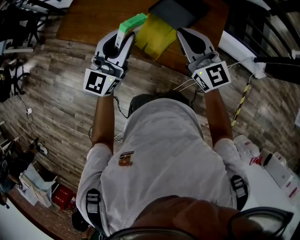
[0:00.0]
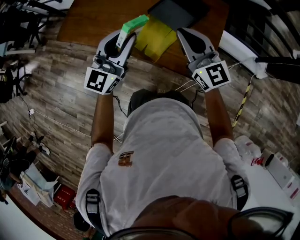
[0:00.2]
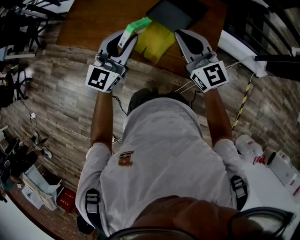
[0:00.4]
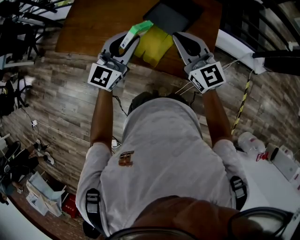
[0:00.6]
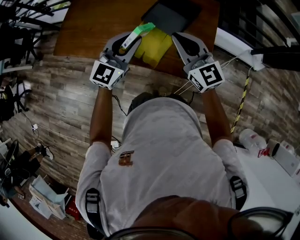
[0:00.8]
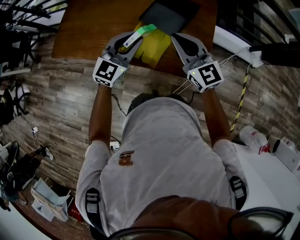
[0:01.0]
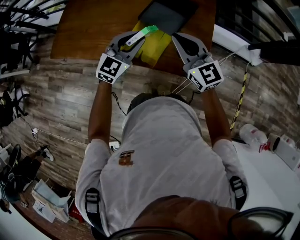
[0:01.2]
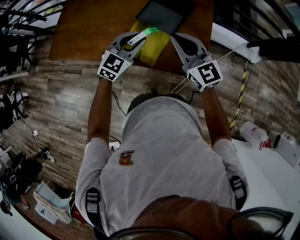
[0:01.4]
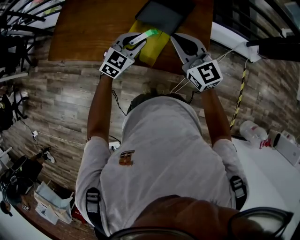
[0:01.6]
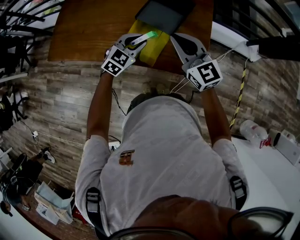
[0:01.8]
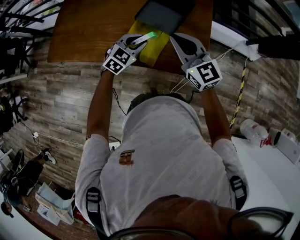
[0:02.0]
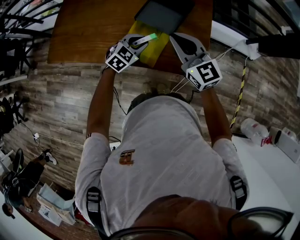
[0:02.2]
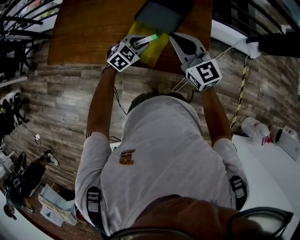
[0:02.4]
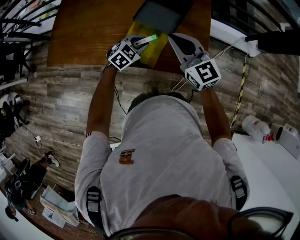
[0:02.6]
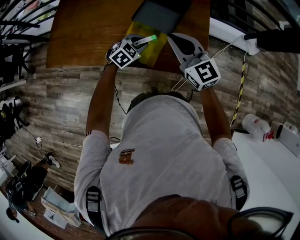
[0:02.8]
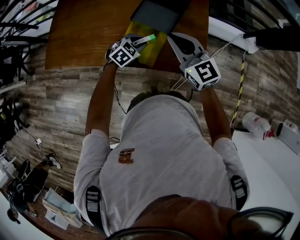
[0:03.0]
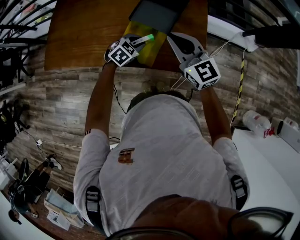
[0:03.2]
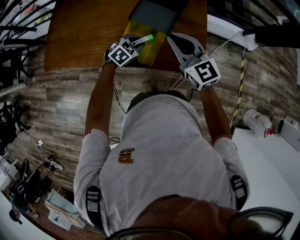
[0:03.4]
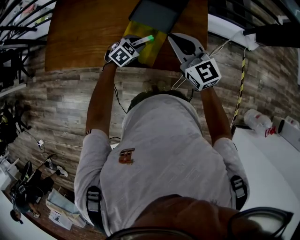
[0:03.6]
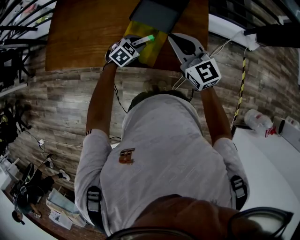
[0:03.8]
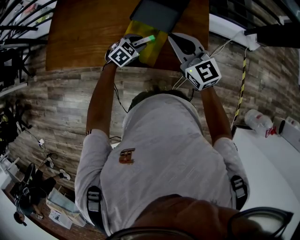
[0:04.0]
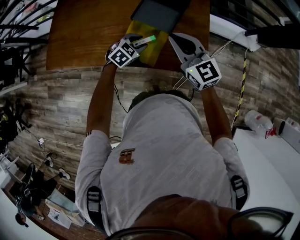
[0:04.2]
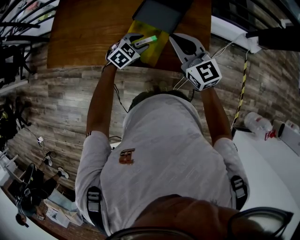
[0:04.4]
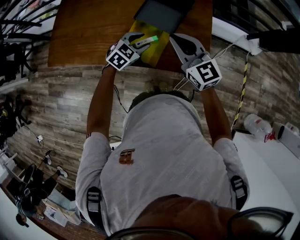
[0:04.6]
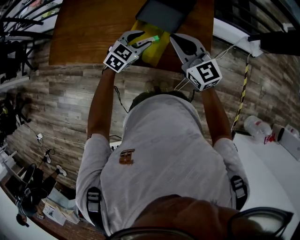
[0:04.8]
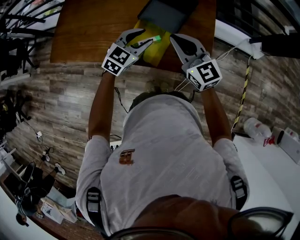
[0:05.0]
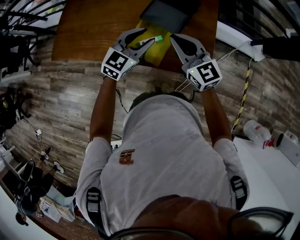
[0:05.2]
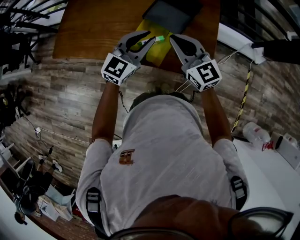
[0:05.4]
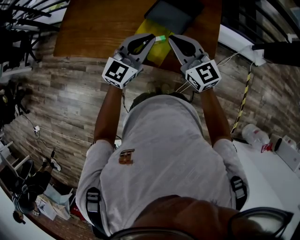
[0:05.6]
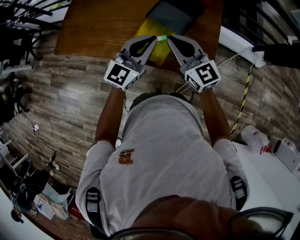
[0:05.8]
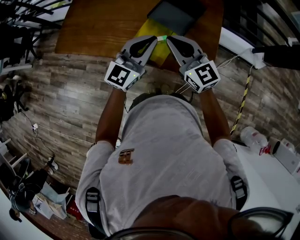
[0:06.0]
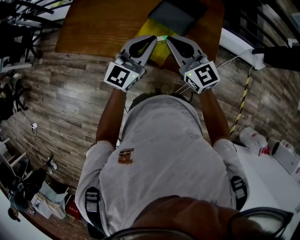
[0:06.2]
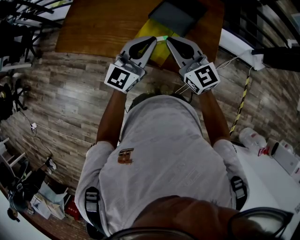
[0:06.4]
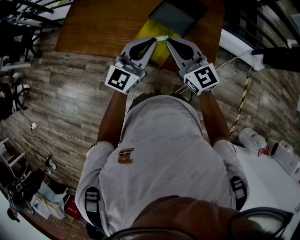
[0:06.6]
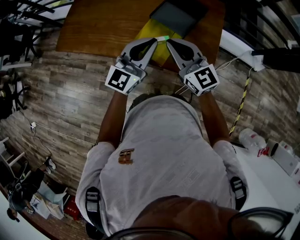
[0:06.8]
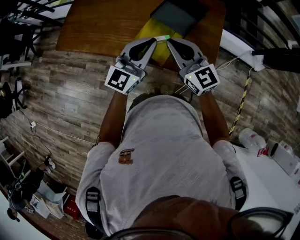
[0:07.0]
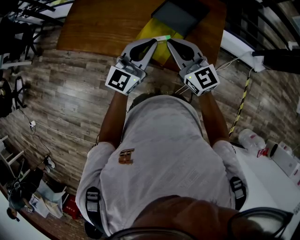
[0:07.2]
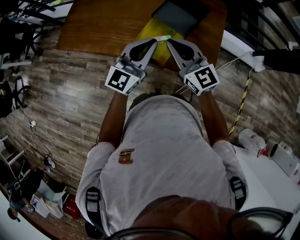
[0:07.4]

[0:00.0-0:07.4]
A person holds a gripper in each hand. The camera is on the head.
0:00.0 to 0:01.4: The left gripper heads downward and forward, covering about 15 cm, and tilts its fingers some 30 degrees downward.
0:01.4 to 0:03.0: The left gripper shifts some 15 cm downward, and changes its angle by about 30 degrees.
0:03.0 to 0:04.4: The grippers make only small movements.
0:04.4 to 0:06.0: The right gripper changes place by some 5 cm. Meanwhile the left gripper travels upward by approximately 20 cm, angles its fingers upward, by roughly 50 degrees, and closes its fingers.
0:06.0 to 0:07.4: The grippers move only a little.

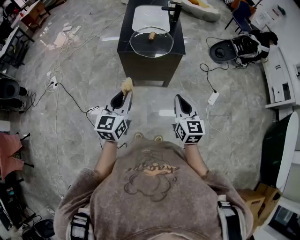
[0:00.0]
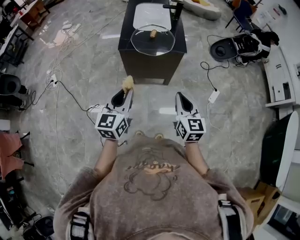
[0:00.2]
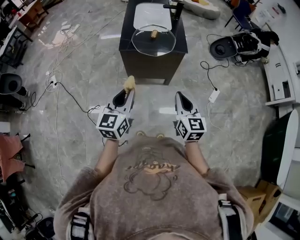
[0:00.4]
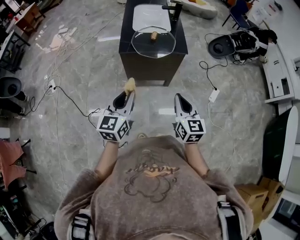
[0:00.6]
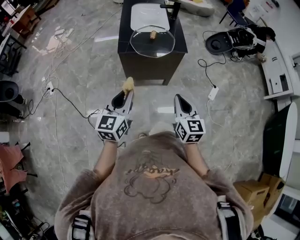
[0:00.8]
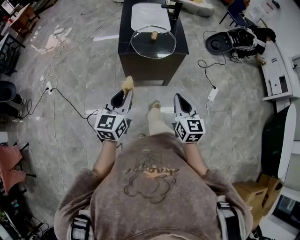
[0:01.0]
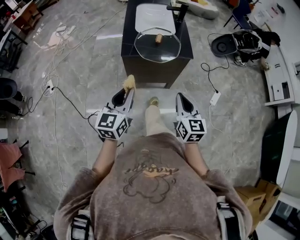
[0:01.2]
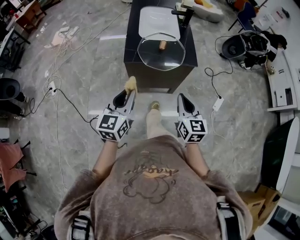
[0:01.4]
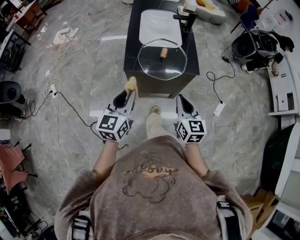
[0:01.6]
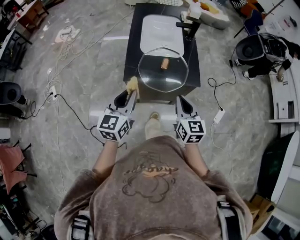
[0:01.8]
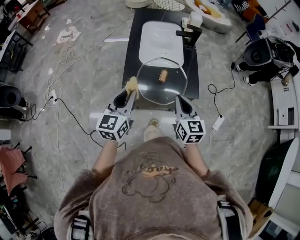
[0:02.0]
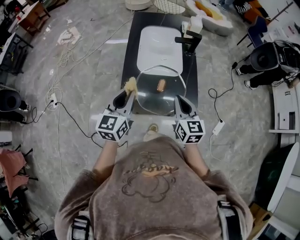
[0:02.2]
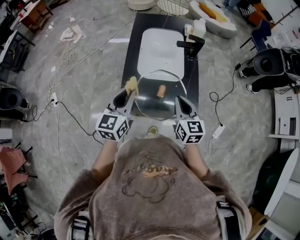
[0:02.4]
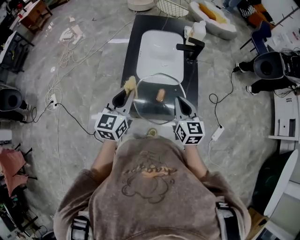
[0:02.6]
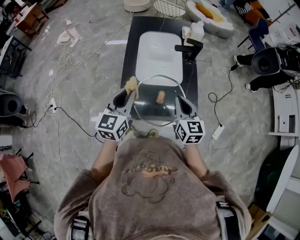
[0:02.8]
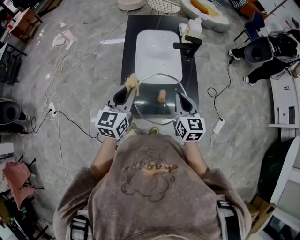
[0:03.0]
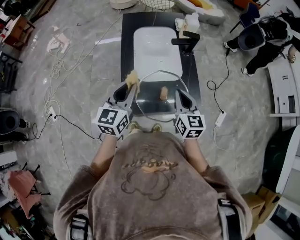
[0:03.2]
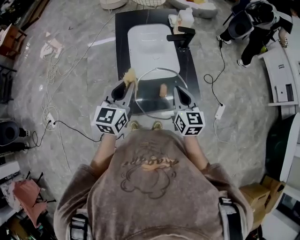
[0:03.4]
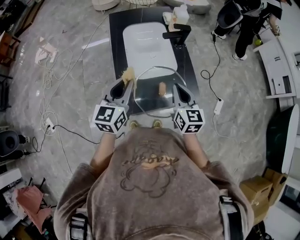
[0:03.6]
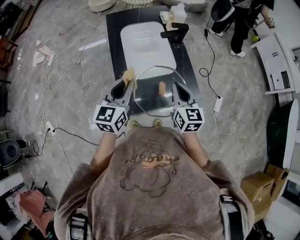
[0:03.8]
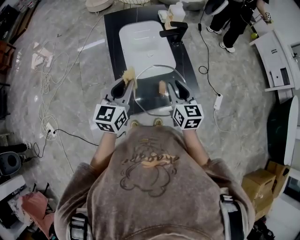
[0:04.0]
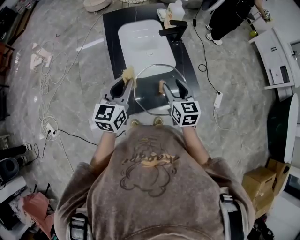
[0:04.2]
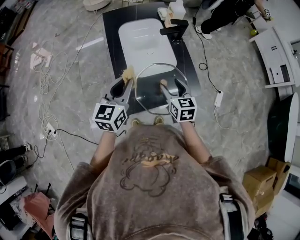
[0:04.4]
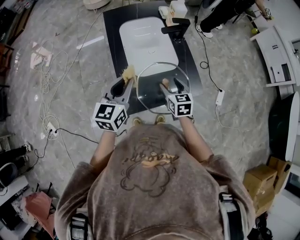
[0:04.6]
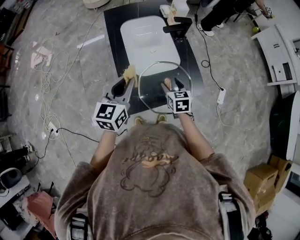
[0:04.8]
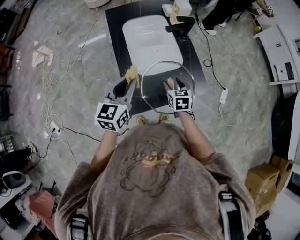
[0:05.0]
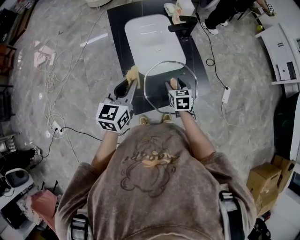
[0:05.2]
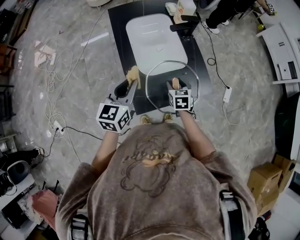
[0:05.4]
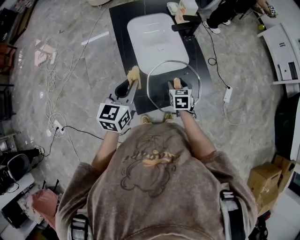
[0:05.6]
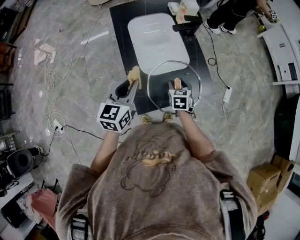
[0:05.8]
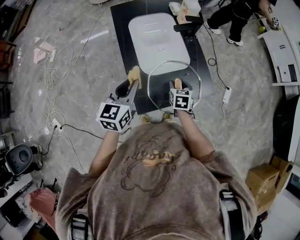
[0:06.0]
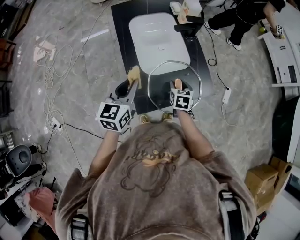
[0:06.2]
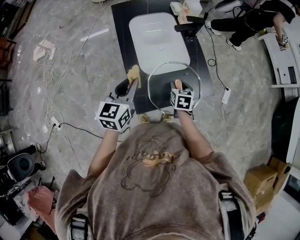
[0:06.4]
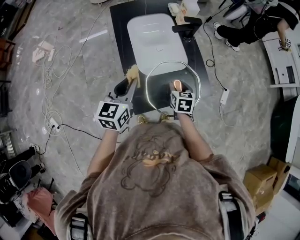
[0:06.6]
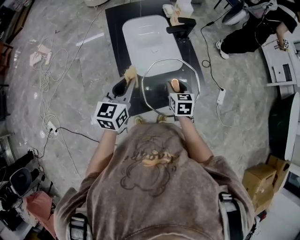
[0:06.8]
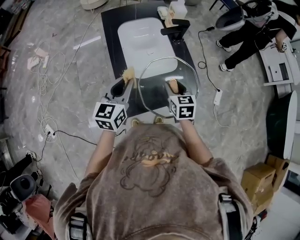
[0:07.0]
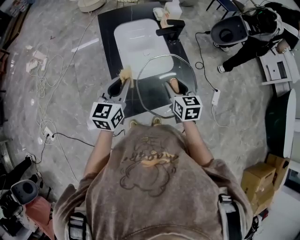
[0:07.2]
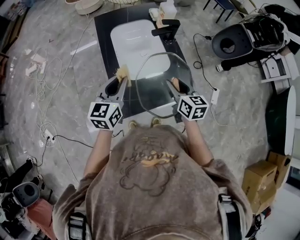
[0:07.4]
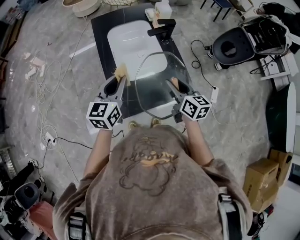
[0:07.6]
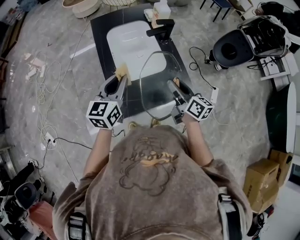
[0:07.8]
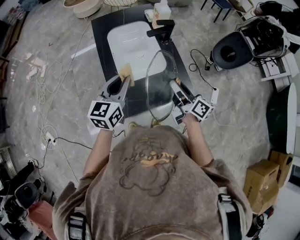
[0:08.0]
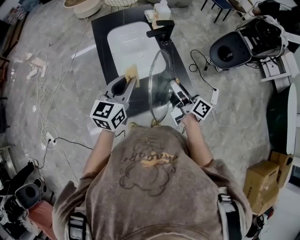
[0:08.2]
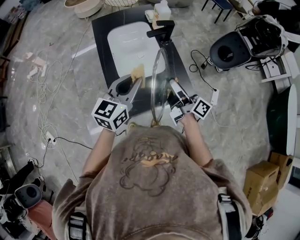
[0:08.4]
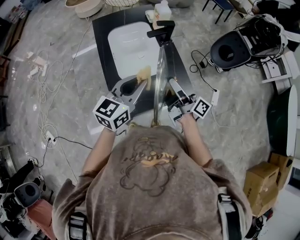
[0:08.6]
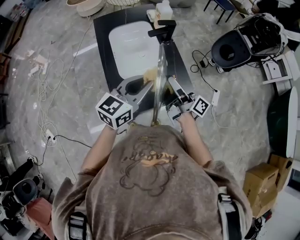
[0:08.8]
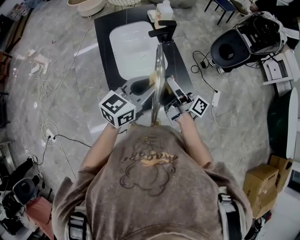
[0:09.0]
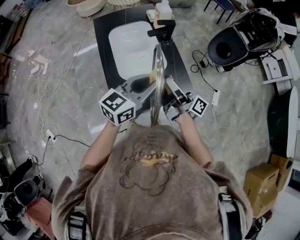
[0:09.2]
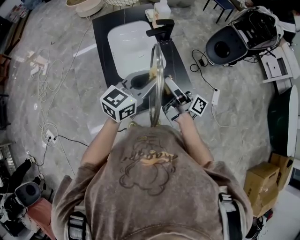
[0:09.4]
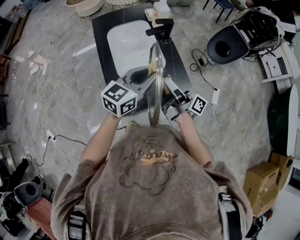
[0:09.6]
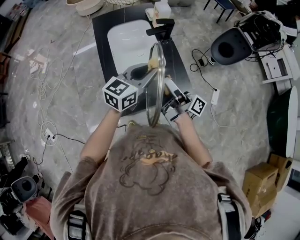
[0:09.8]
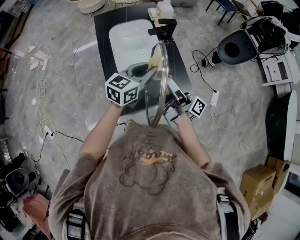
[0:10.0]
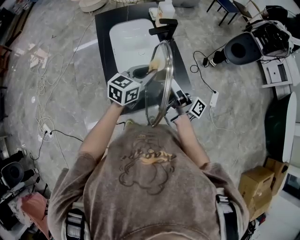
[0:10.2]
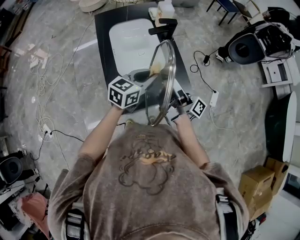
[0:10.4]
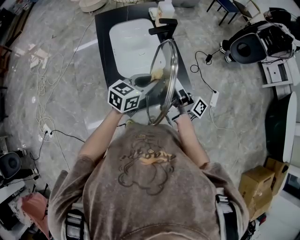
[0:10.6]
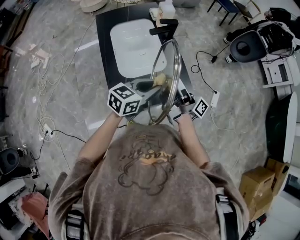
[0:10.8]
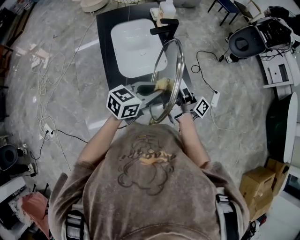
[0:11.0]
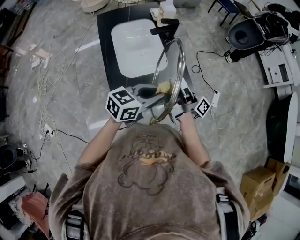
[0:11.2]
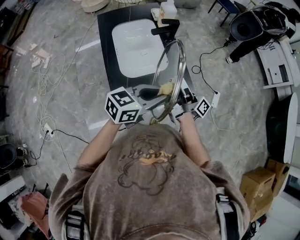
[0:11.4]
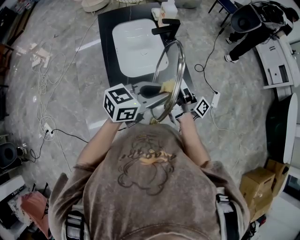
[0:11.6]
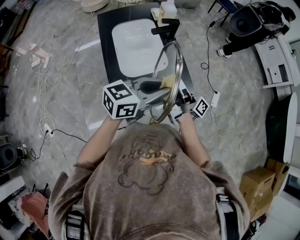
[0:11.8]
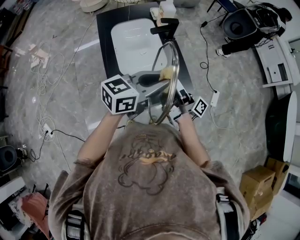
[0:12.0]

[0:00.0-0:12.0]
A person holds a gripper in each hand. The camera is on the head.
0:00.0 to 0:01.6: Both grippers travel together forward and to the left, some 20 cm.
0:01.6 to 0:03.0: The two grippers go about 30 cm forward.
0:03.0 to 0:04.4: The right gripper shifts about 10 cm downward and to the left, and opens.
0:04.4 to 0:06.0: The left gripper moves about 5 cm. Meanwhile the right gripper is displaced downward by some 10 cm, and swivels about 20 degrees.
0:06.0 to 0:07.6: The right gripper is displaced upward and to the right by approximately 15 cm, and swivels approximately 40 degrees. The left gripper goes some 5 cm to the right.
0:07.6 to 0:09.0: The left gripper shifts approximately 15 cm to the right, and rotates some 30 degrees. Meanwhile the right gripper angles its fingers upward, by some 40 degrees.
0:09.0 to 0:10.4: The left gripper shifts approximately 10 cm downward and forward.
0:10.4 to 0:12.0: The left gripper moves upward and backward, about 10 cm.

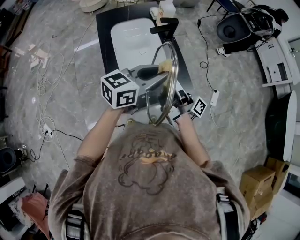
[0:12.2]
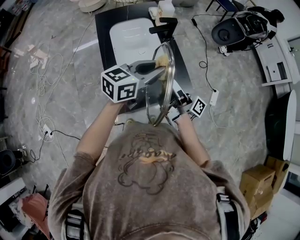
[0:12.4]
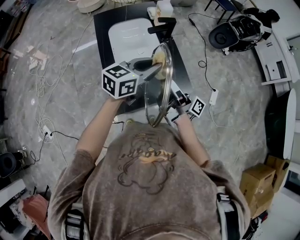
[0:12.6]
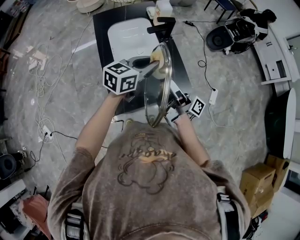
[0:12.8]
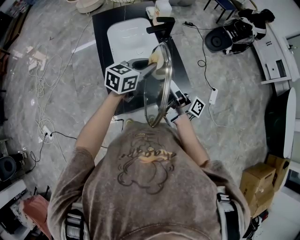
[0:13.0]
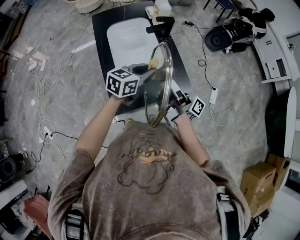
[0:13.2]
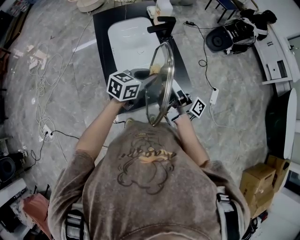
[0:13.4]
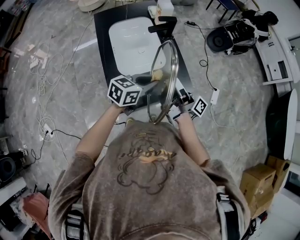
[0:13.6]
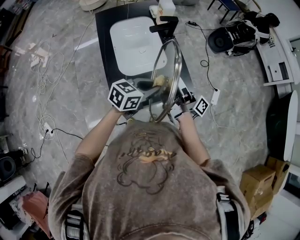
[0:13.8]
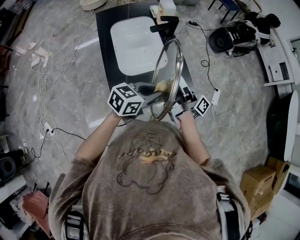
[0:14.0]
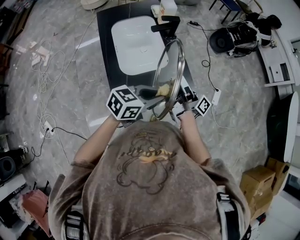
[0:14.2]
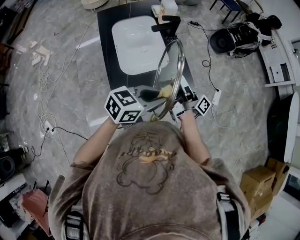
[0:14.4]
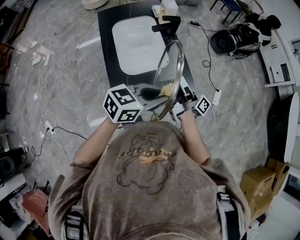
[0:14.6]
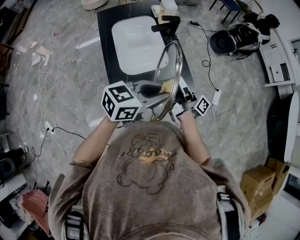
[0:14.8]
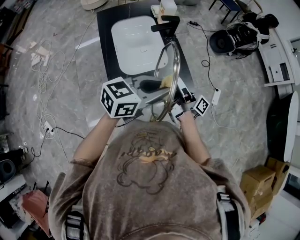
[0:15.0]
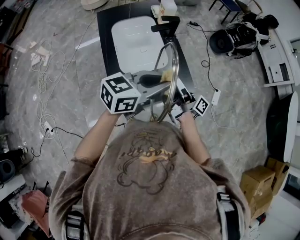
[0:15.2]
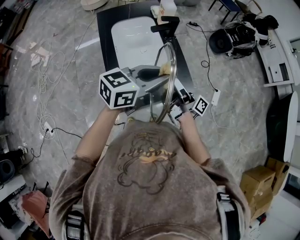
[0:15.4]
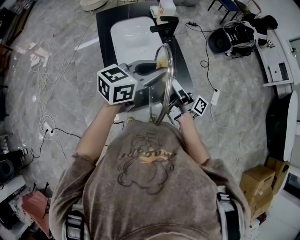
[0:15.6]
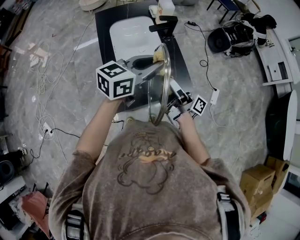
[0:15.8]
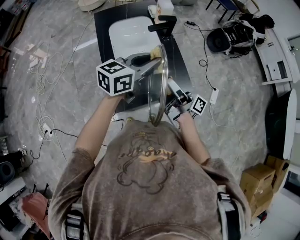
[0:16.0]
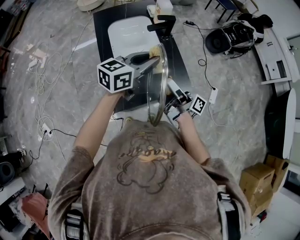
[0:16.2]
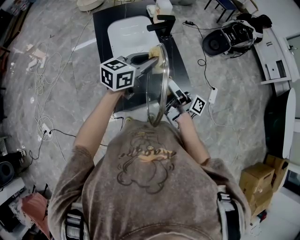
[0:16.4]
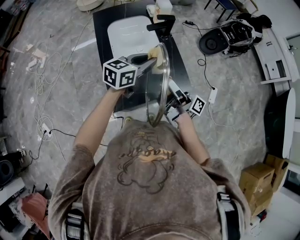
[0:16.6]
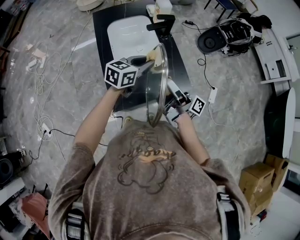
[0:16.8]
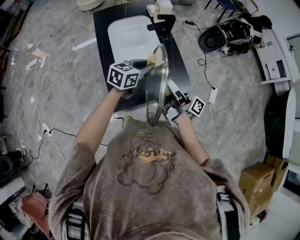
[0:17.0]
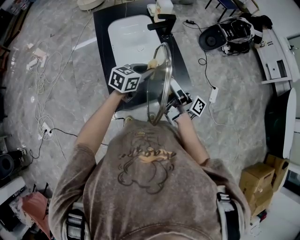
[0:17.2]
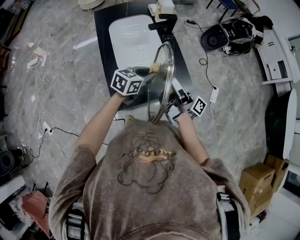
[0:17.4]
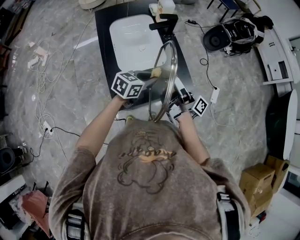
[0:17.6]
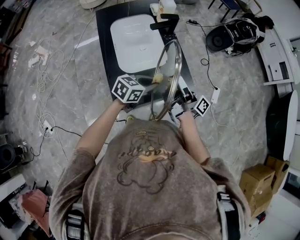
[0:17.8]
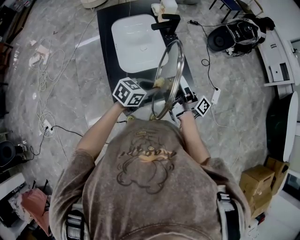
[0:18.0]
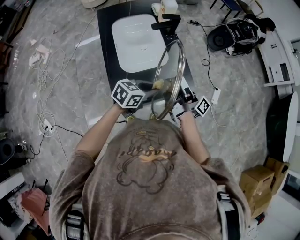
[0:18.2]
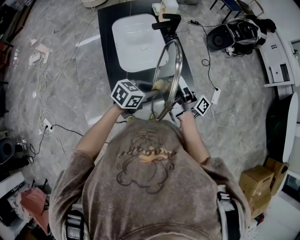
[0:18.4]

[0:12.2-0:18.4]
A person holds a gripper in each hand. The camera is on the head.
0:12.2 to 0:13.8: The left gripper shifts approximately 15 cm downward.
0:13.8 to 0:15.4: The left gripper goes approximately 15 cm upward.
0:15.4 to 0:16.8: The left gripper travels downward and forward by about 15 cm.
0:16.8 to 0:18.4: The left gripper goes some 10 cm backward and downward.
